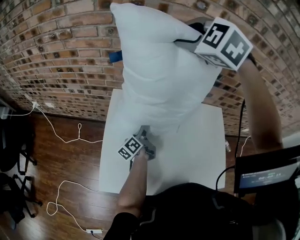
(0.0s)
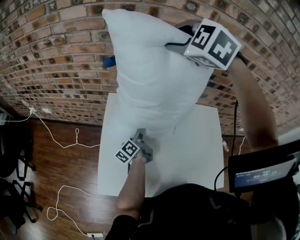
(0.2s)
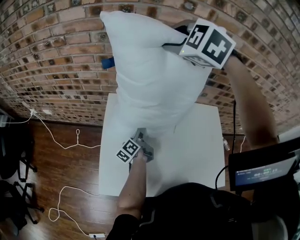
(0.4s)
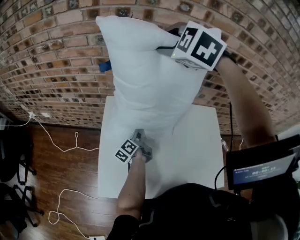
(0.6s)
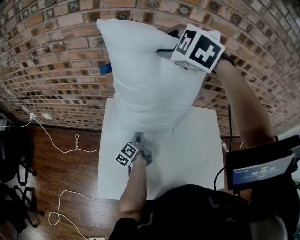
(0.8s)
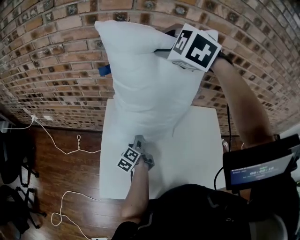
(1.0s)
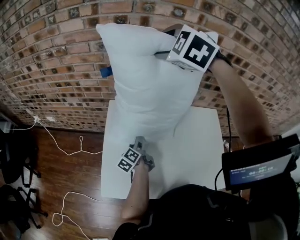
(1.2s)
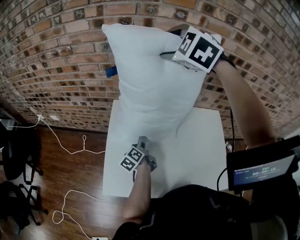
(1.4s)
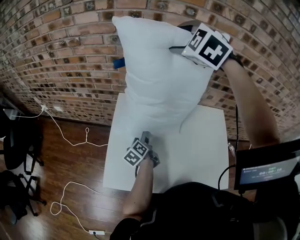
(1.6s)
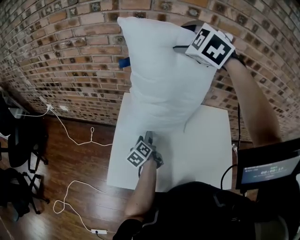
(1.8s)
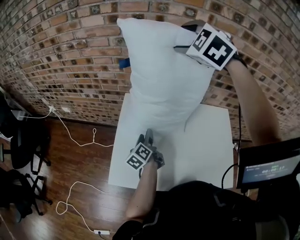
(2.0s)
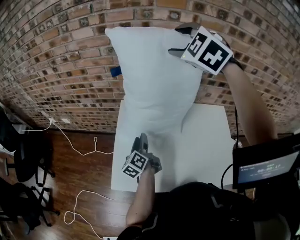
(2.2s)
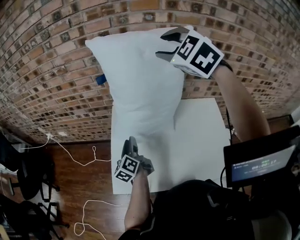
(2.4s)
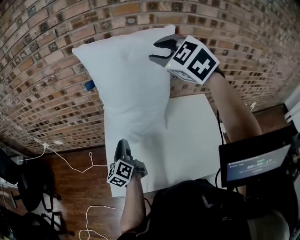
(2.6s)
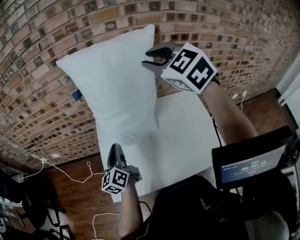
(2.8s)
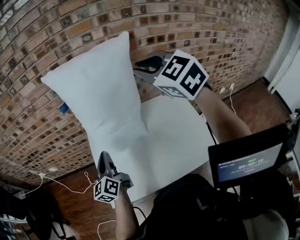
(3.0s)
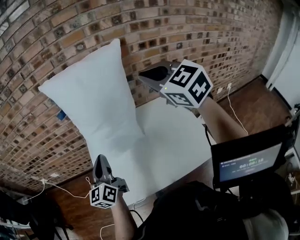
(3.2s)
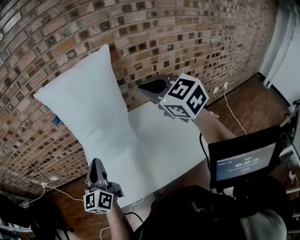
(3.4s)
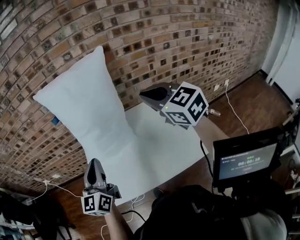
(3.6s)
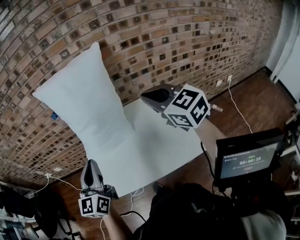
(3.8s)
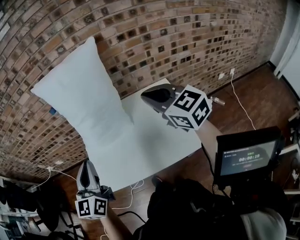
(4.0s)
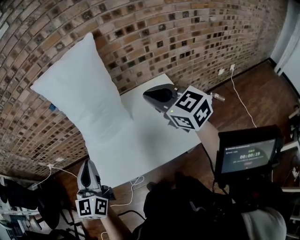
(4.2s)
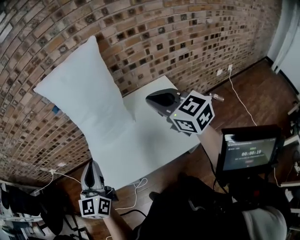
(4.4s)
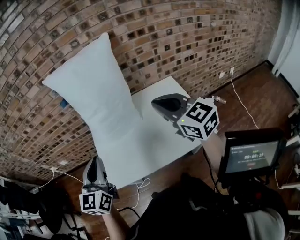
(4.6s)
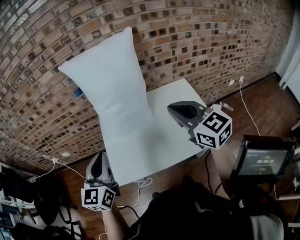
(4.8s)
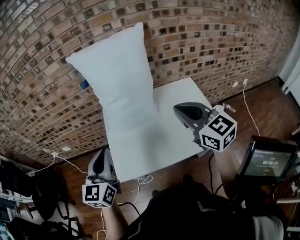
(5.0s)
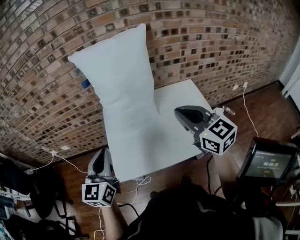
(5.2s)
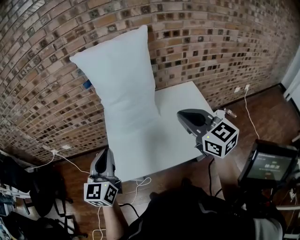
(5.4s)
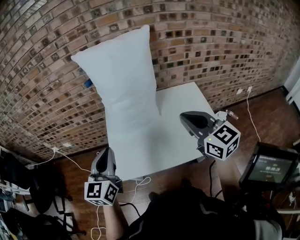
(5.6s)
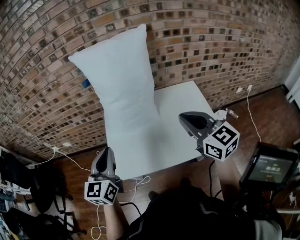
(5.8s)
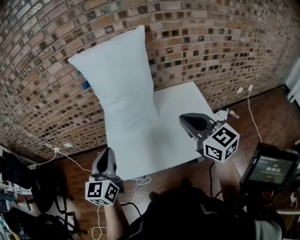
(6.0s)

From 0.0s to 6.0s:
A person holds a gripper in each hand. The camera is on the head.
From 0.0s to 1.6s: The left gripper moves backward, about 5 cm, and rotates approximately 20 degrees.
From 1.6s to 3.0s: The left gripper heads upward, covering about 20 cm, swivels some 40 degrees, and closes up; the right gripper heads backward and to the right, covering some 25 cm, turns by approximately 30 degrees, and closes its fingers.
From 3.0s to 4.4s: The left gripper shifts roughly 20 cm backward and upward, and rotates some 30 degrees, while the right gripper goes roughly 20 cm backward, to the right and downward, and rotates approximately 30 degrees.
From 4.4s to 6.0s: The right gripper travels to the left and backward by approximately 10 cm, while the left gripper moves to the left, some 5 cm.

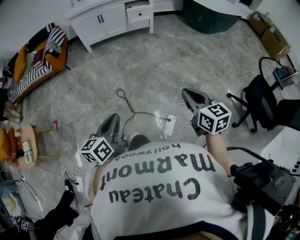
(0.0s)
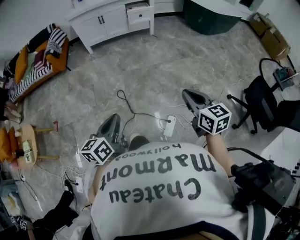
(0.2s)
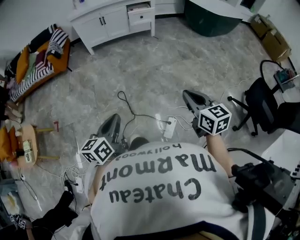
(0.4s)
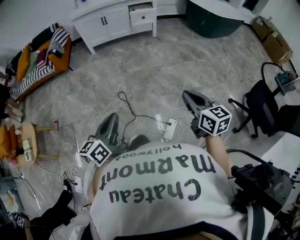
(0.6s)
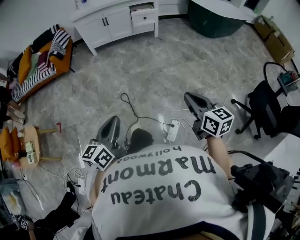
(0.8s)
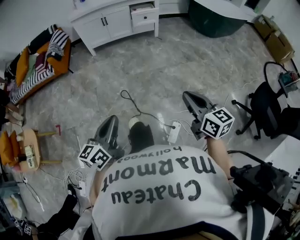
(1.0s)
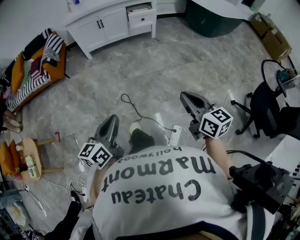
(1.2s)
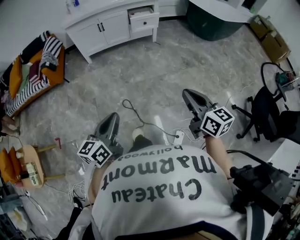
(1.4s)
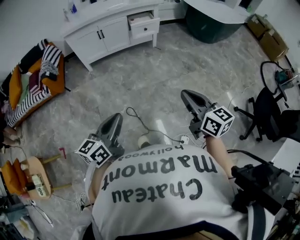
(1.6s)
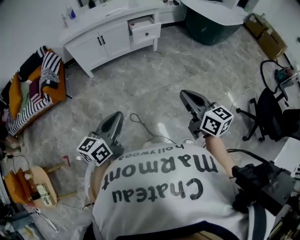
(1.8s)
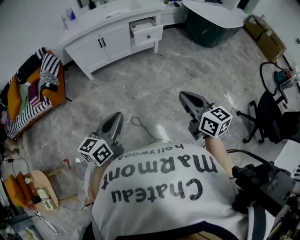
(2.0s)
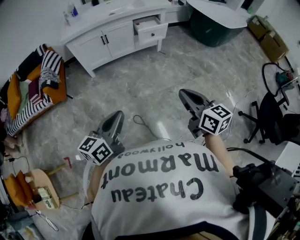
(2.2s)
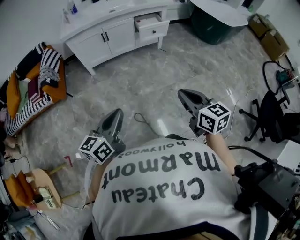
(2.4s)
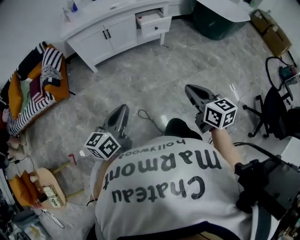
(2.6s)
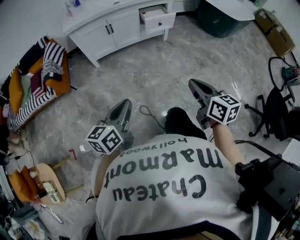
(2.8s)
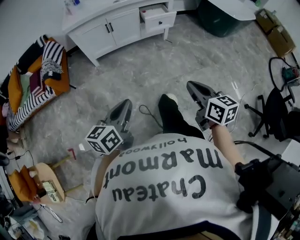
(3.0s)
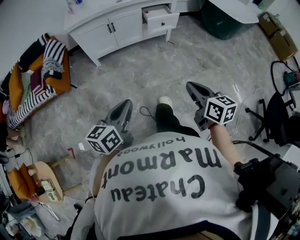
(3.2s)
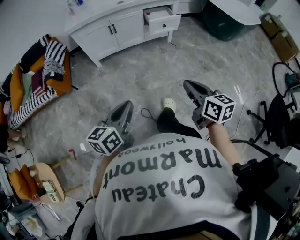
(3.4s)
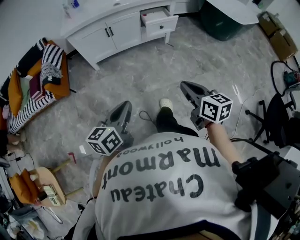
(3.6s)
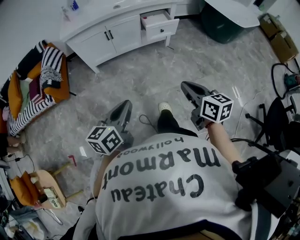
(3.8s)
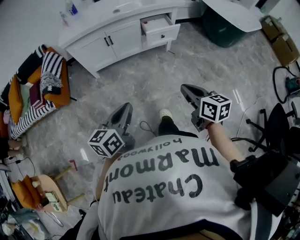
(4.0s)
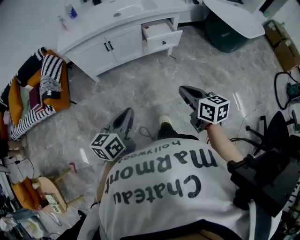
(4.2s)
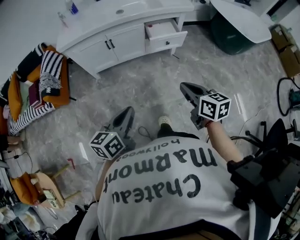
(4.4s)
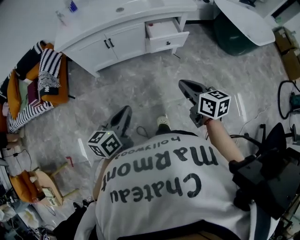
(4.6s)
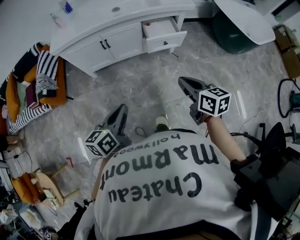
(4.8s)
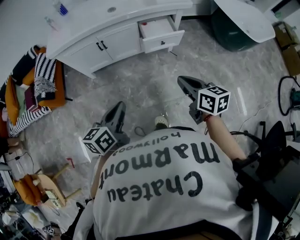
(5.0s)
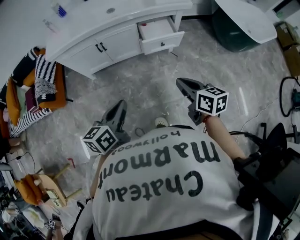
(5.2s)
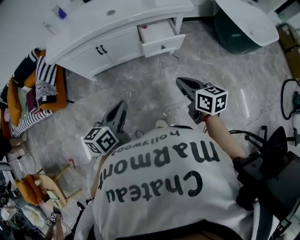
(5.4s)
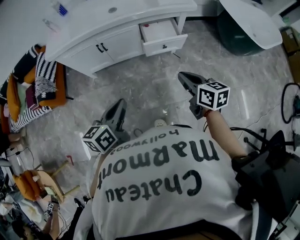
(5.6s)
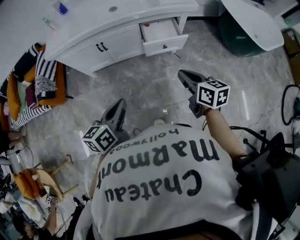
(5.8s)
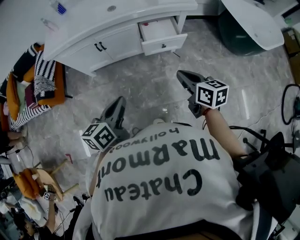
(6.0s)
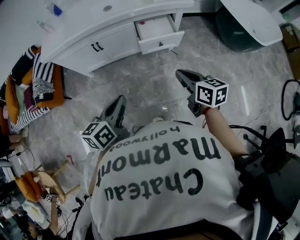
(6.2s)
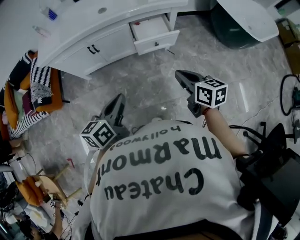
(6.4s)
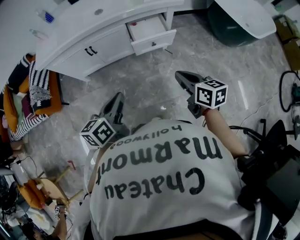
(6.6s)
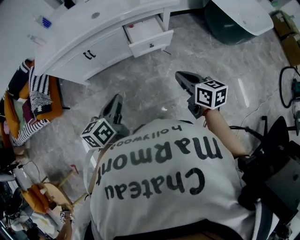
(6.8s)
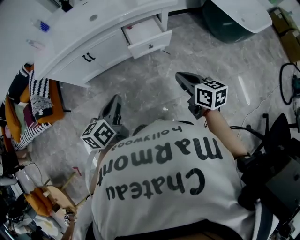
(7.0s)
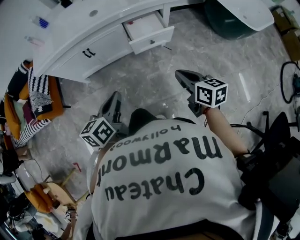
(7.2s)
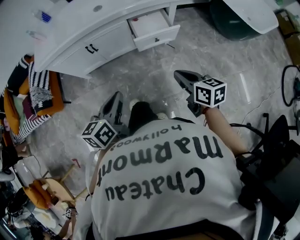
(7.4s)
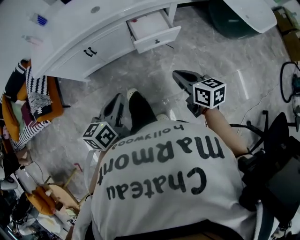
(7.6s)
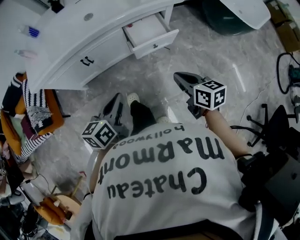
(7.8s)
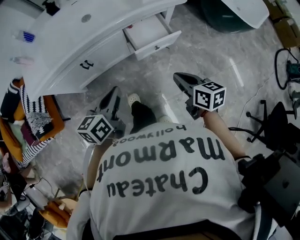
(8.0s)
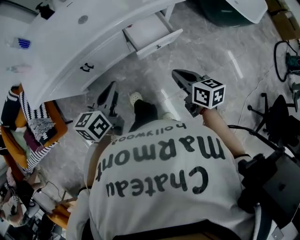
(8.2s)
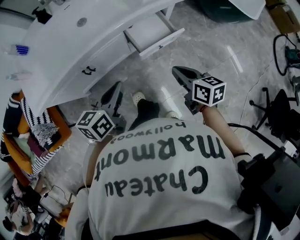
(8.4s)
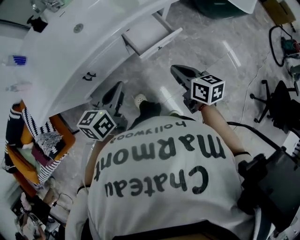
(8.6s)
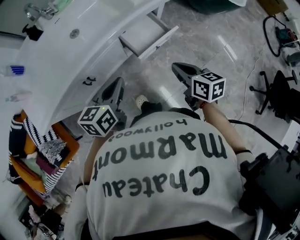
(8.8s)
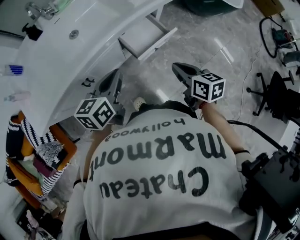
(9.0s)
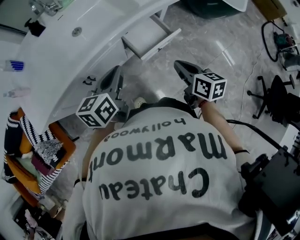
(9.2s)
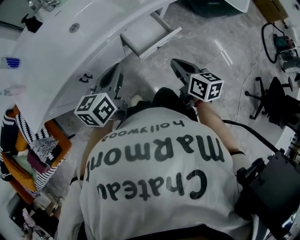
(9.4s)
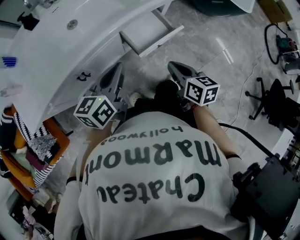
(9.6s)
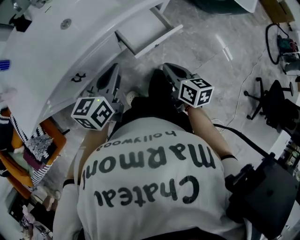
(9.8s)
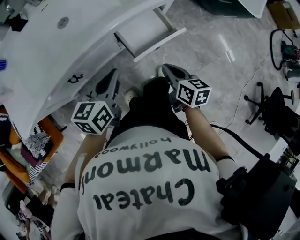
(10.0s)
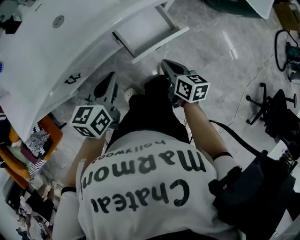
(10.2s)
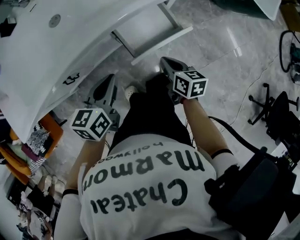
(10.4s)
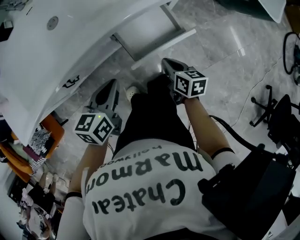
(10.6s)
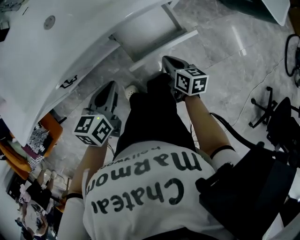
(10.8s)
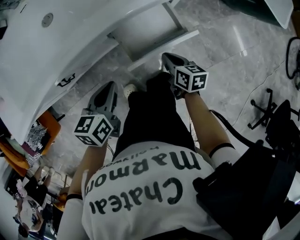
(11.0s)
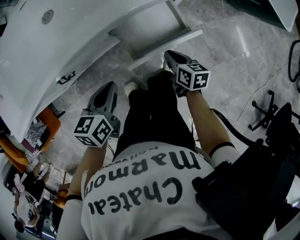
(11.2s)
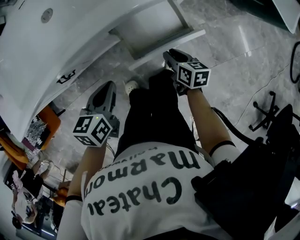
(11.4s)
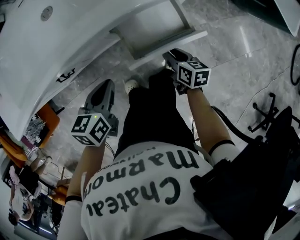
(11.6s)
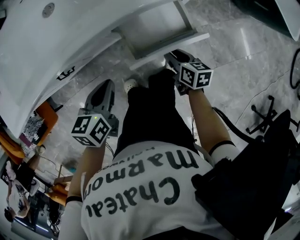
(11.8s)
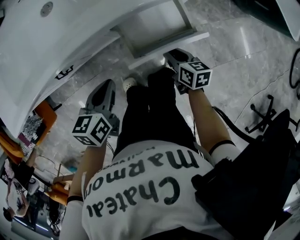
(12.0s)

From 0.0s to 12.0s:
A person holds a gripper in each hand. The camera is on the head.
From 0.0s to 1.6s: The right gripper shifts some 25 cm forward and to the left. Meanwhile the left gripper is displaced forward by some 25 cm.
From 1.6s to 3.0s: Both grippers move forward and to the left, approximately 15 cm.
From 3.0s to 4.4s: Both grippers travel together forward, about 25 cm.
From 4.4s to 6.0s: The grippers both shift forward and to the right by approximately 20 cm.
From 6.0s to 7.6s: The left gripper goes some 5 cm forward.
From 7.6s to 9.0s: The right gripper shifts some 15 cm forward and to the left, and changes its angle by roughly 30 degrees. Meanwhile the left gripper travels forward by roughly 25 cm, and rotates approximately 30 degrees.
From 9.0s to 10.4s: The right gripper goes roughly 20 cm downward and forward. The left gripper travels downward and forward by roughly 15 cm.
From 10.4s to 12.0s: The grippers both shift downward by some 10 cm.

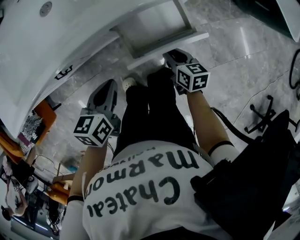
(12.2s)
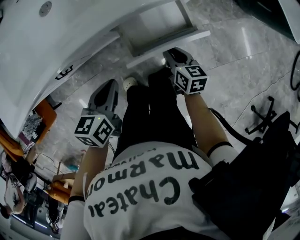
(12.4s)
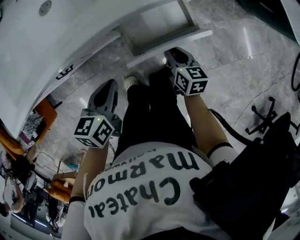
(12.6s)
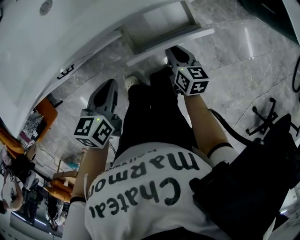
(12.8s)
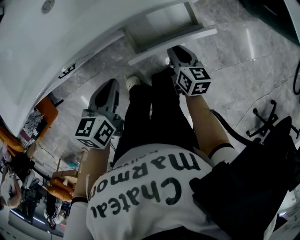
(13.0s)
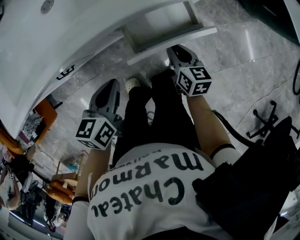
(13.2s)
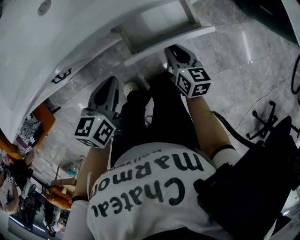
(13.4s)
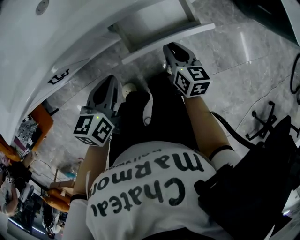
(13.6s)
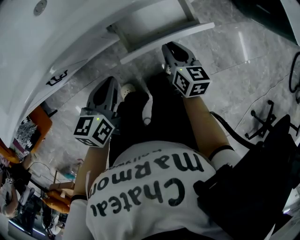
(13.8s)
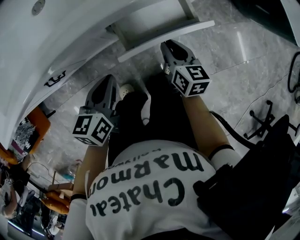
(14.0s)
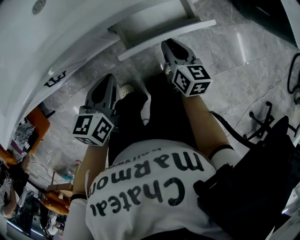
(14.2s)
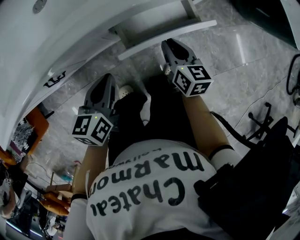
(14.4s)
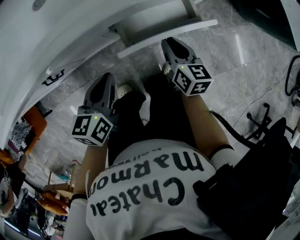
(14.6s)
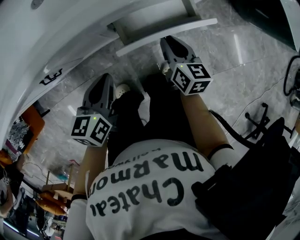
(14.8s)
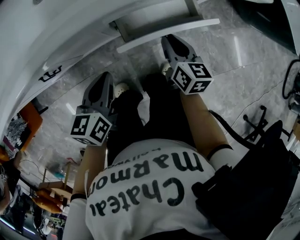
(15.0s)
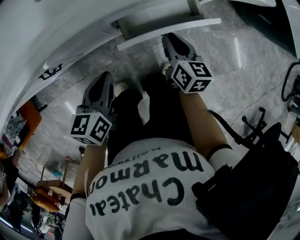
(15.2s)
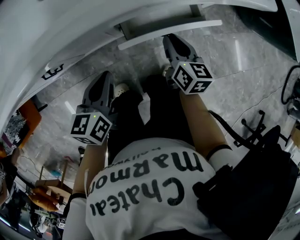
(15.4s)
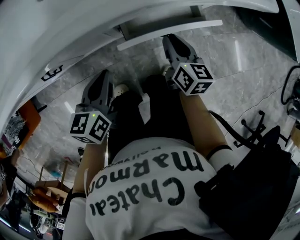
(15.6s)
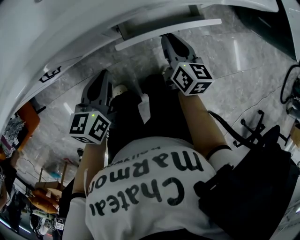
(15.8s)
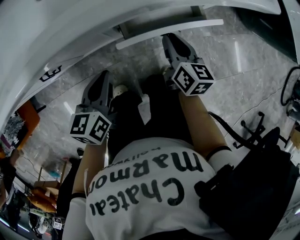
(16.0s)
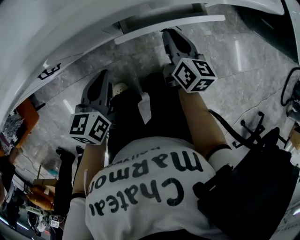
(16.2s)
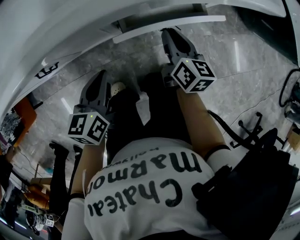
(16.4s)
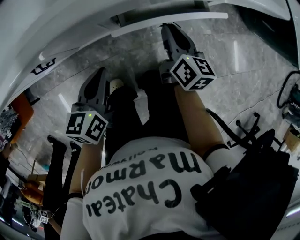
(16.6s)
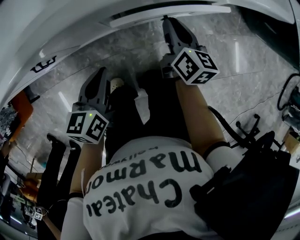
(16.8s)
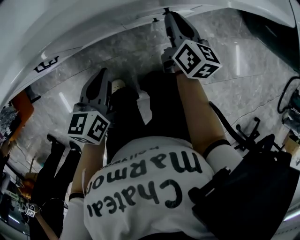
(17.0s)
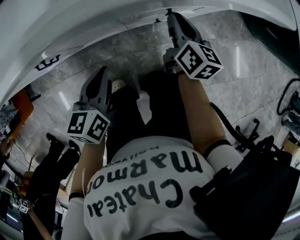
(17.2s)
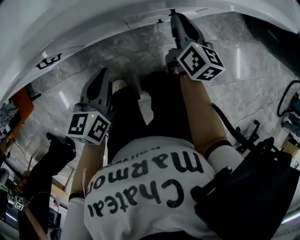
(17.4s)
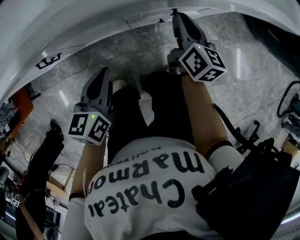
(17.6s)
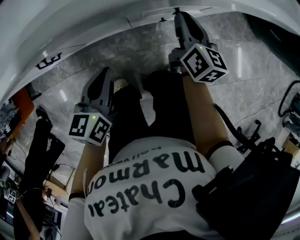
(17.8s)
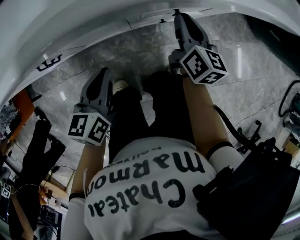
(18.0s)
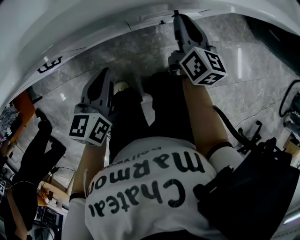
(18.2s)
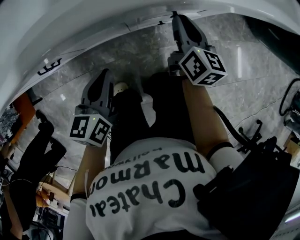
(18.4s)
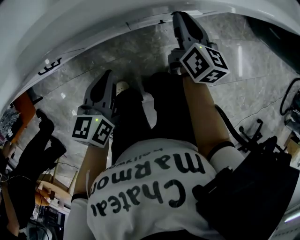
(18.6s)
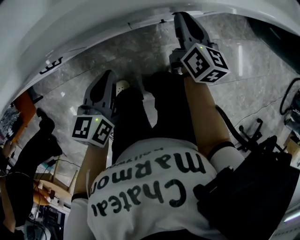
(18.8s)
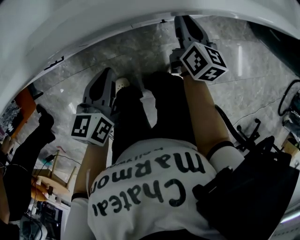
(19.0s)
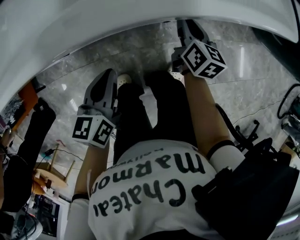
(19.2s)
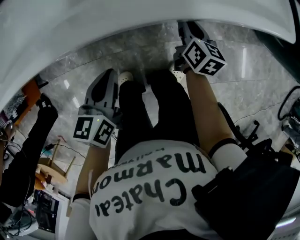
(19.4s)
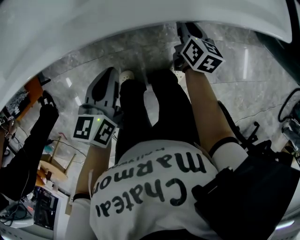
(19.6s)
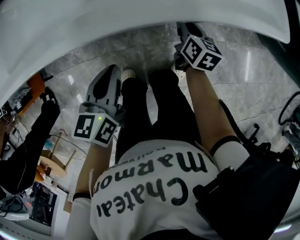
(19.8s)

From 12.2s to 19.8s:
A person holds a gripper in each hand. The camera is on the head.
From 12.2s to 13.8s: The grippers move only a little.
From 13.8s to 15.2s: The grippers move only a little.
From 15.2s to 16.8s: The grippers stay close to where they were, moving slightly.
From 16.8s to 18.2s: The grippers stay close to where they were, moving slightly.
From 18.2s to 19.8s: The left gripper goes some 10 cm upward.
